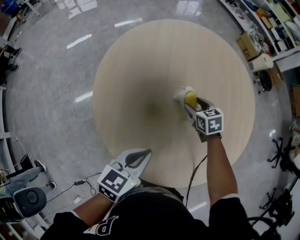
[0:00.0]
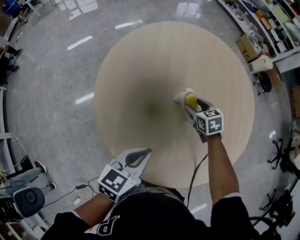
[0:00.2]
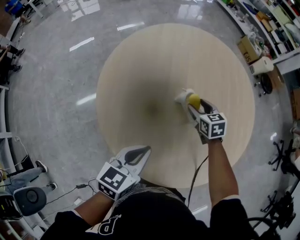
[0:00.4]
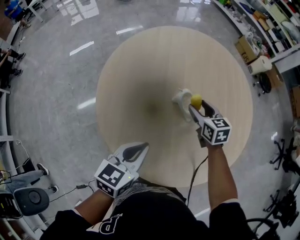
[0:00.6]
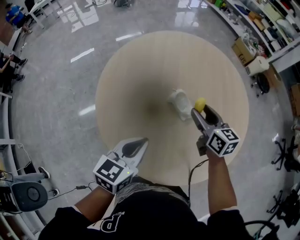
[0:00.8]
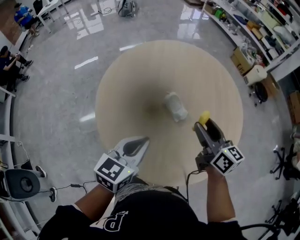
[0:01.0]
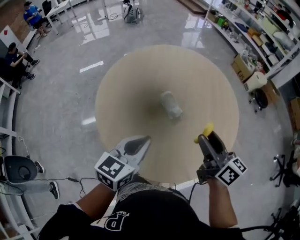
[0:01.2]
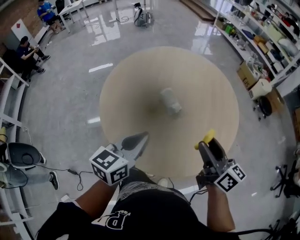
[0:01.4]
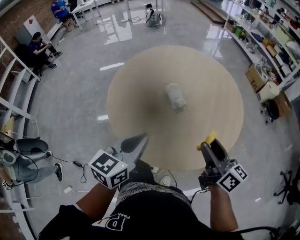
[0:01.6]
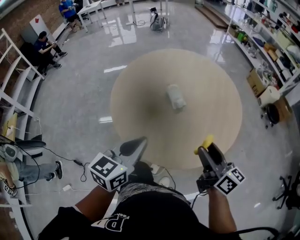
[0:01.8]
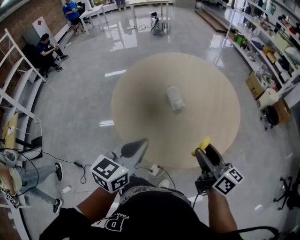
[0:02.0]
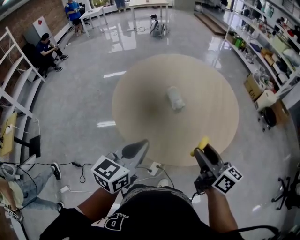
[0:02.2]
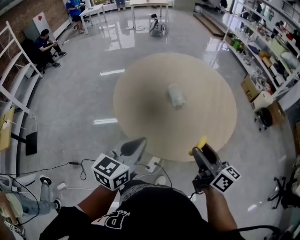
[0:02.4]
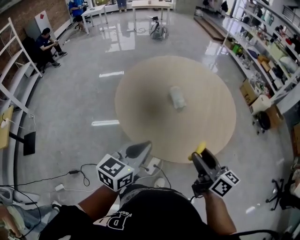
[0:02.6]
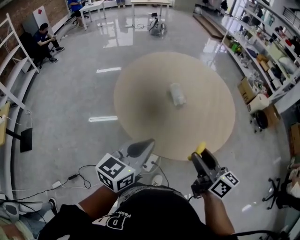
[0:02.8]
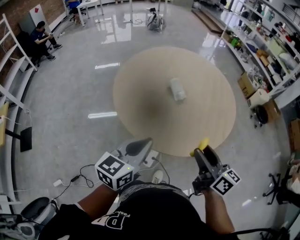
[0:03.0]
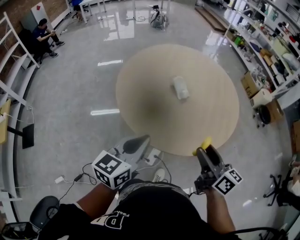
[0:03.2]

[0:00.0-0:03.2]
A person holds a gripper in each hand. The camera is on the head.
0:00.0 to 0:01.6: The left gripper goes roughly 25 cm to the right, upward and backward, and swivels some 30 degrees. The right gripper moves backward, upward and to the right, approximately 40 cm, and tips its fingers upward by roughly 50 degrees.
0:01.6 to 0:03.2: Both grippers move backward, approximately 15 cm.

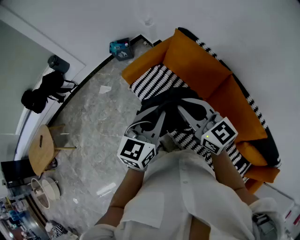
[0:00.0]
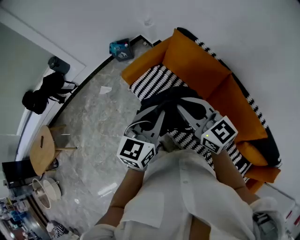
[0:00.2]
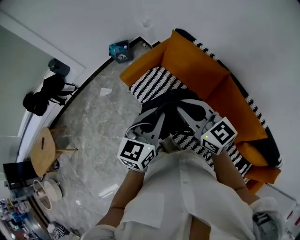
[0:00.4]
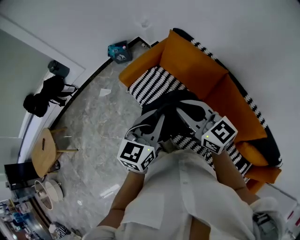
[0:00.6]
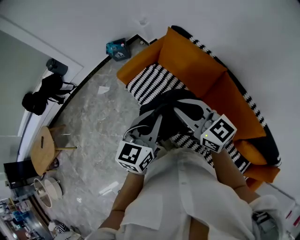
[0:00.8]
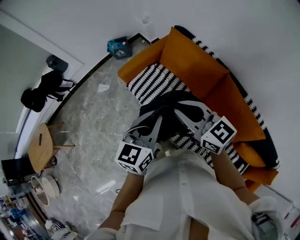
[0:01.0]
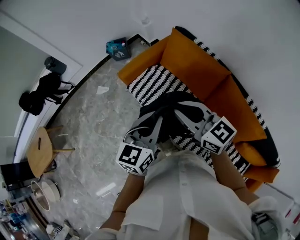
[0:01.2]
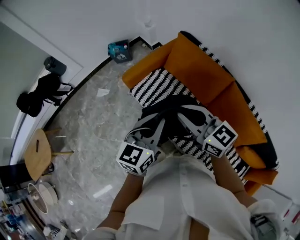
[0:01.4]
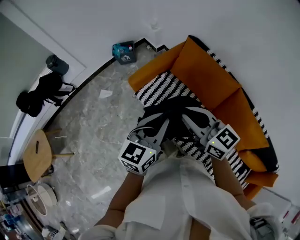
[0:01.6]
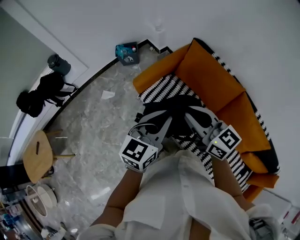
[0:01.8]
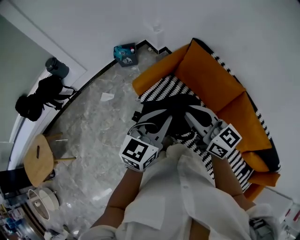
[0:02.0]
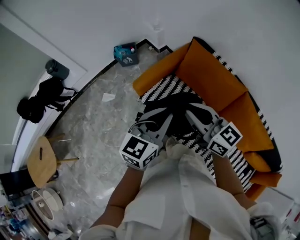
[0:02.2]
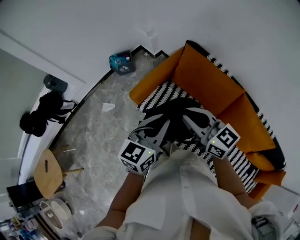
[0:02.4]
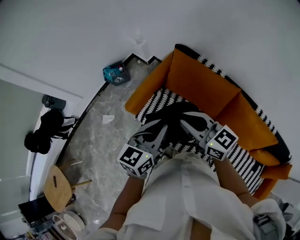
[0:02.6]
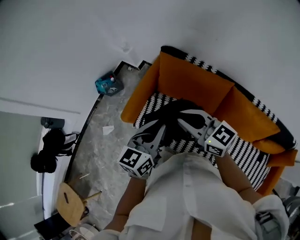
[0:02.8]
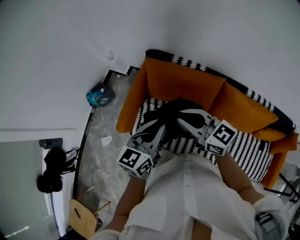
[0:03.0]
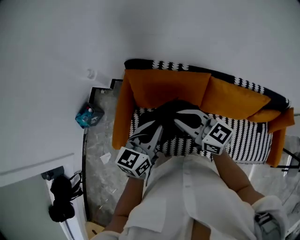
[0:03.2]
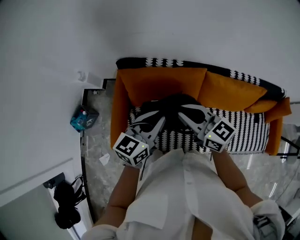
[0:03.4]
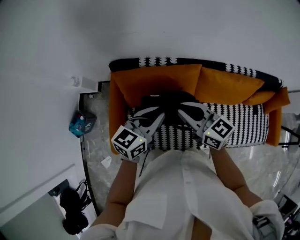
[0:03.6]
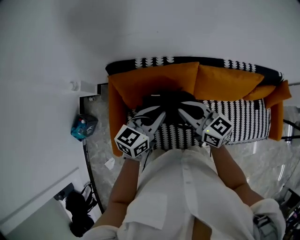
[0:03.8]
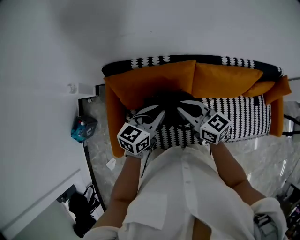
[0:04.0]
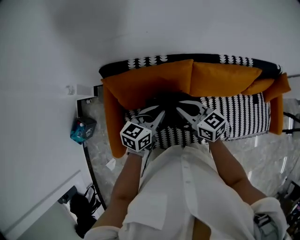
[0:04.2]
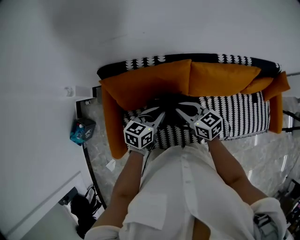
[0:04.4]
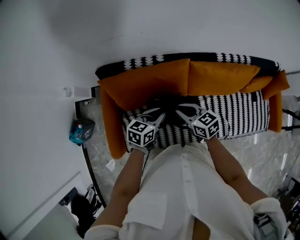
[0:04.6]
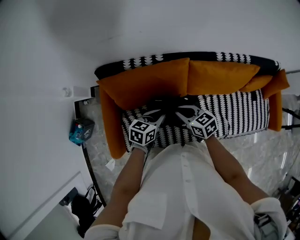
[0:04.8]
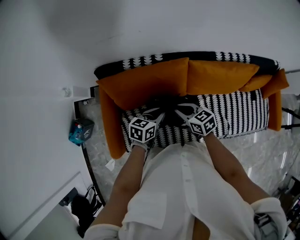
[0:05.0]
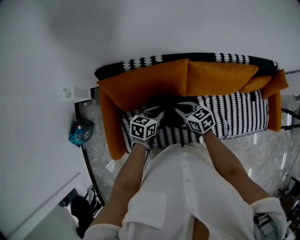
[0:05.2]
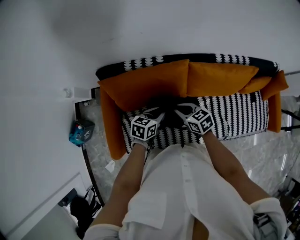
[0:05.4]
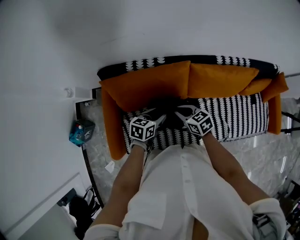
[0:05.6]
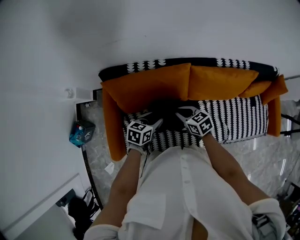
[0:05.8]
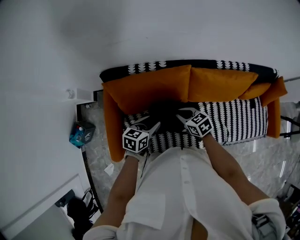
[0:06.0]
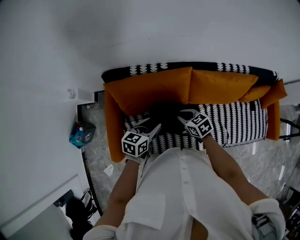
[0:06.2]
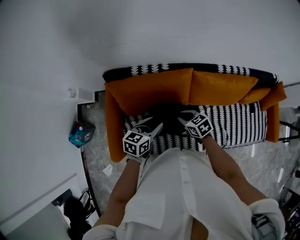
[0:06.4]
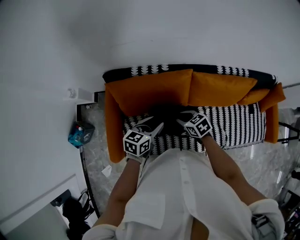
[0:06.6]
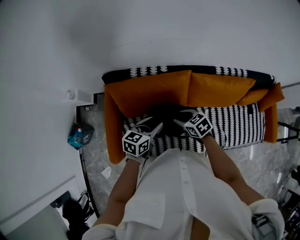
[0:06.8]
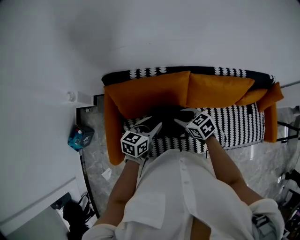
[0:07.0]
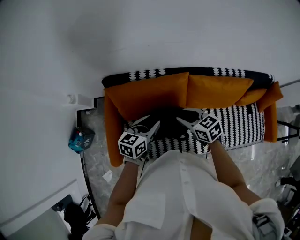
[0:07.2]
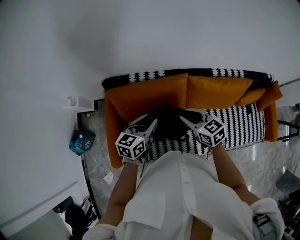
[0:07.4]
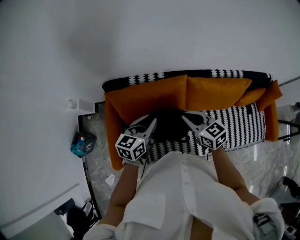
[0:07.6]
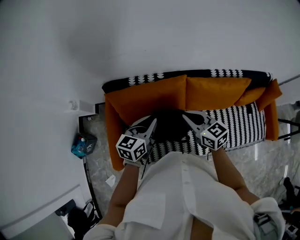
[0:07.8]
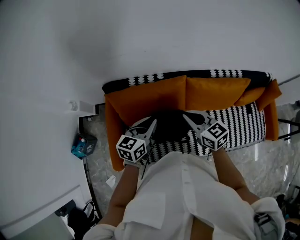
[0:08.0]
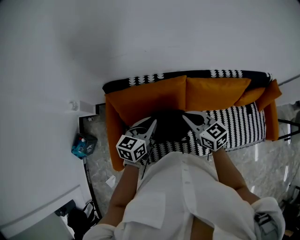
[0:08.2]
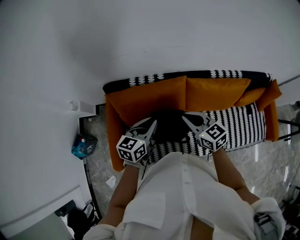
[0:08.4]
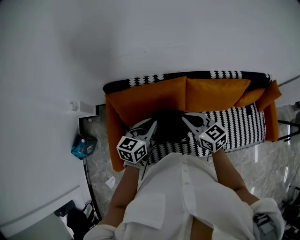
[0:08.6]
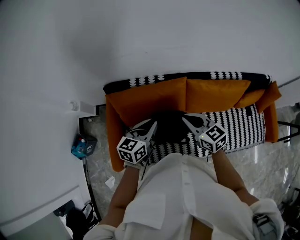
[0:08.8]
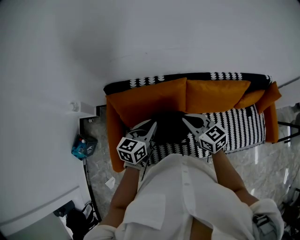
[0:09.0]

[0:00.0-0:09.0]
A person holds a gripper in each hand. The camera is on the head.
0:00.0 to 0:01.6: The grippers both shift to the left and forward by roughly 10 cm.
0:01.6 to 0:03.0: The grippers both shift forward and to the right by some 20 cm. The left gripper swivels roughly 30 degrees.
0:03.0 to 0:04.4: Both grippers travel together downward, approximately 15 cm. The right gripper swivels approximately 40 degrees; the left gripper changes its angle by roughly 40 degrees.
0:04.4 to 0:06.0: The right gripper travels downward by roughly 10 cm. The left gripper changes place by roughly 5 cm, and opens.
0:06.0 to 0:07.6: The grippers both shift upward by approximately 15 cm. The left gripper closes its fingers, while the right gripper opens, then closes once more.
0:07.6 to 0:09.0: There are only small adjustments of the grippers.

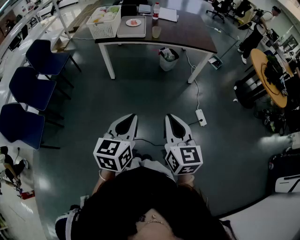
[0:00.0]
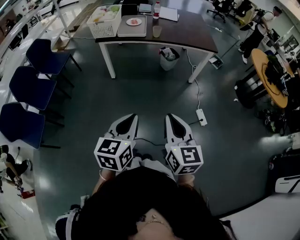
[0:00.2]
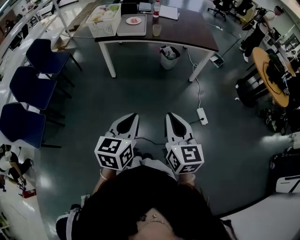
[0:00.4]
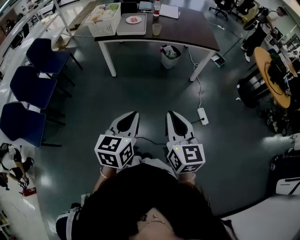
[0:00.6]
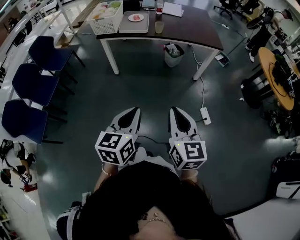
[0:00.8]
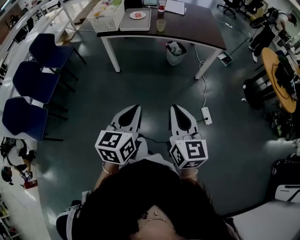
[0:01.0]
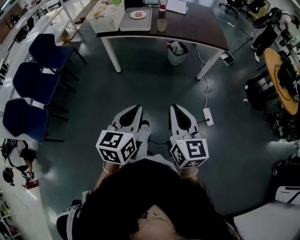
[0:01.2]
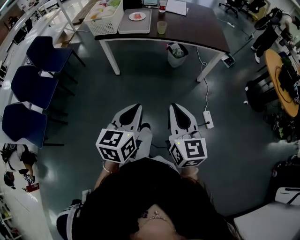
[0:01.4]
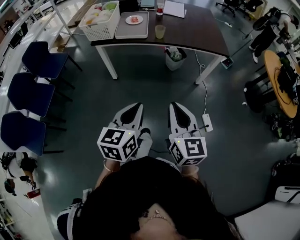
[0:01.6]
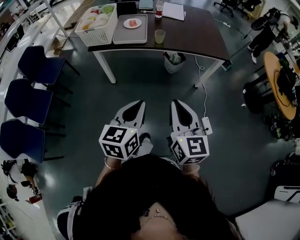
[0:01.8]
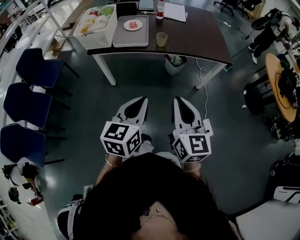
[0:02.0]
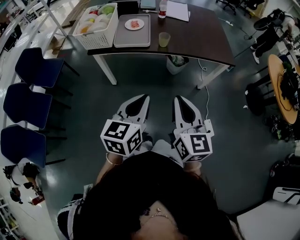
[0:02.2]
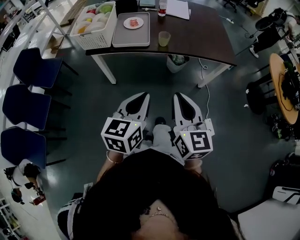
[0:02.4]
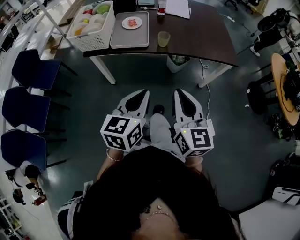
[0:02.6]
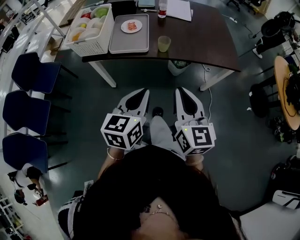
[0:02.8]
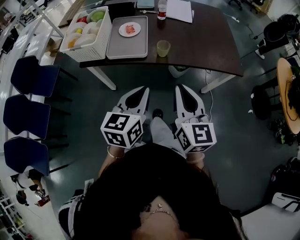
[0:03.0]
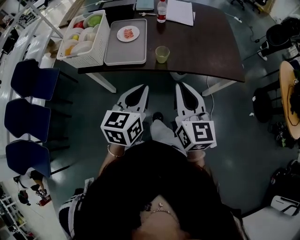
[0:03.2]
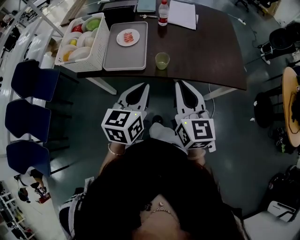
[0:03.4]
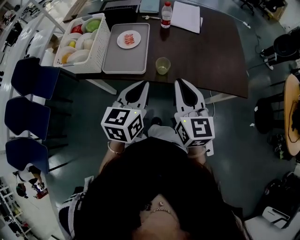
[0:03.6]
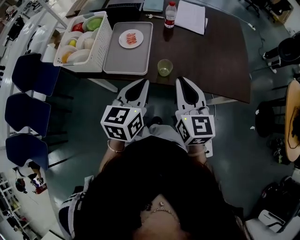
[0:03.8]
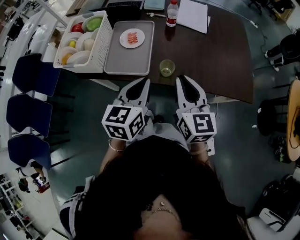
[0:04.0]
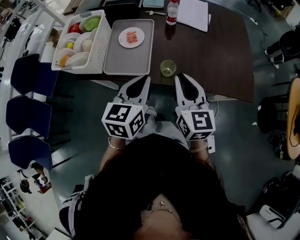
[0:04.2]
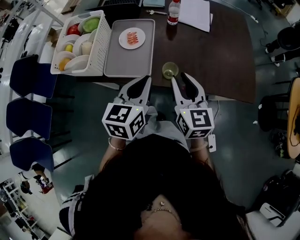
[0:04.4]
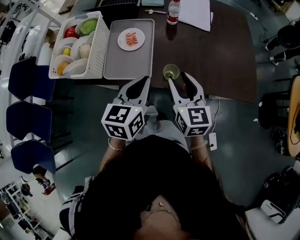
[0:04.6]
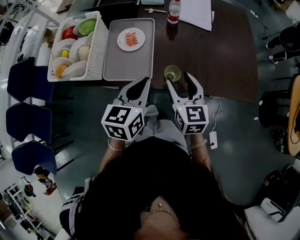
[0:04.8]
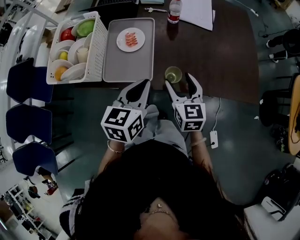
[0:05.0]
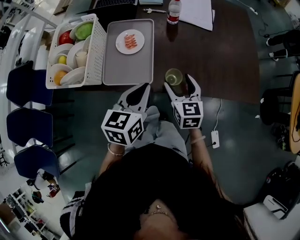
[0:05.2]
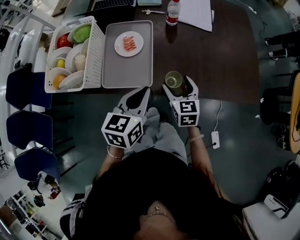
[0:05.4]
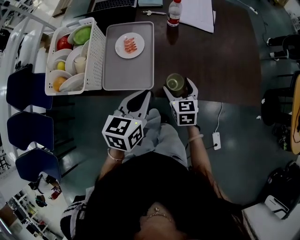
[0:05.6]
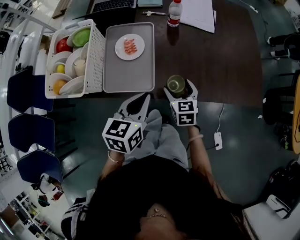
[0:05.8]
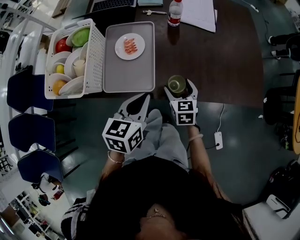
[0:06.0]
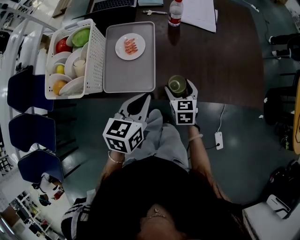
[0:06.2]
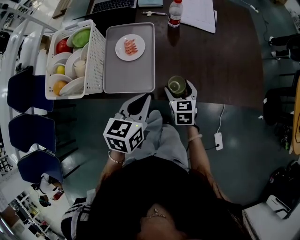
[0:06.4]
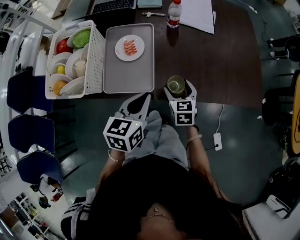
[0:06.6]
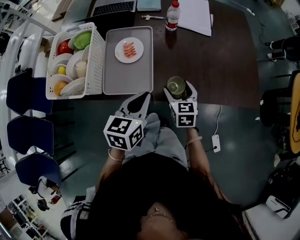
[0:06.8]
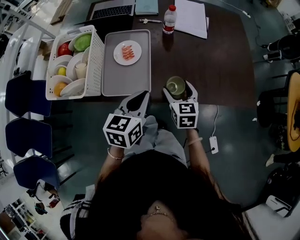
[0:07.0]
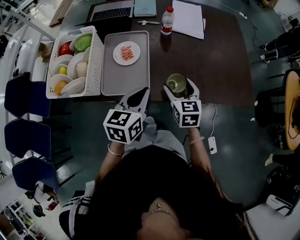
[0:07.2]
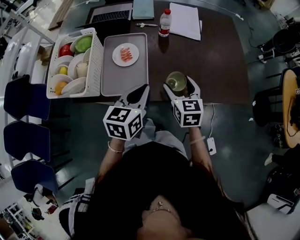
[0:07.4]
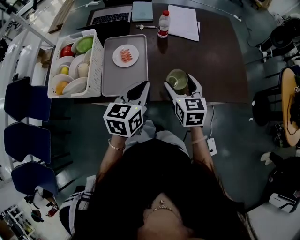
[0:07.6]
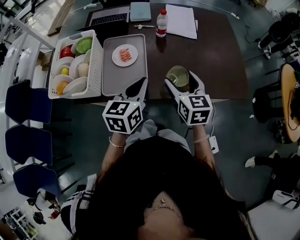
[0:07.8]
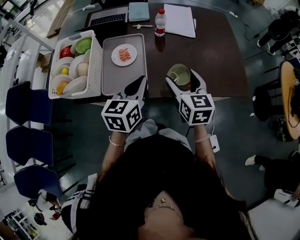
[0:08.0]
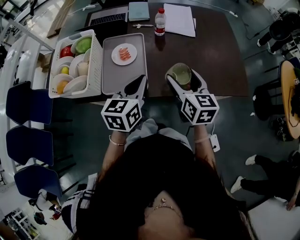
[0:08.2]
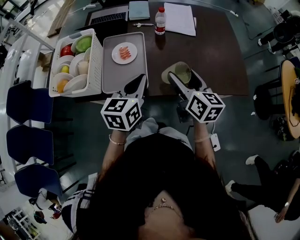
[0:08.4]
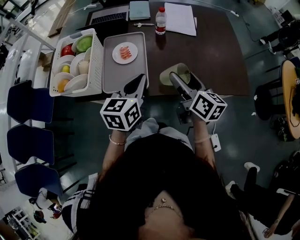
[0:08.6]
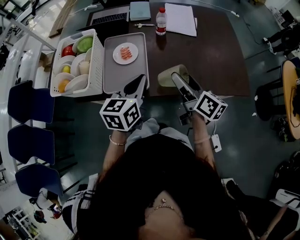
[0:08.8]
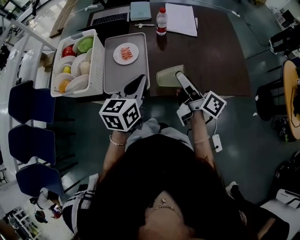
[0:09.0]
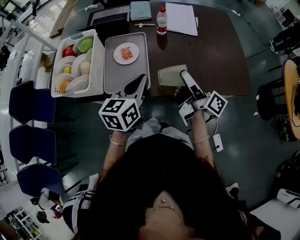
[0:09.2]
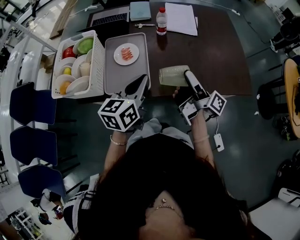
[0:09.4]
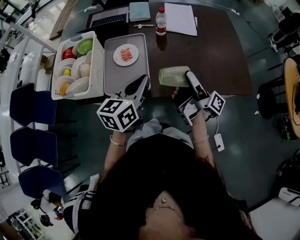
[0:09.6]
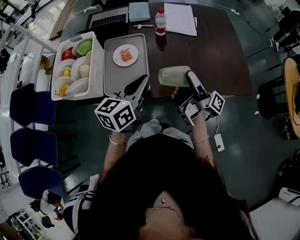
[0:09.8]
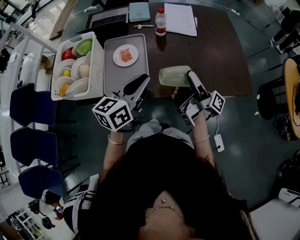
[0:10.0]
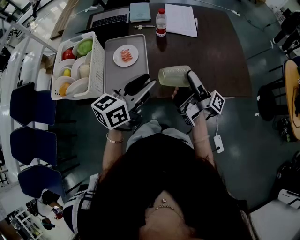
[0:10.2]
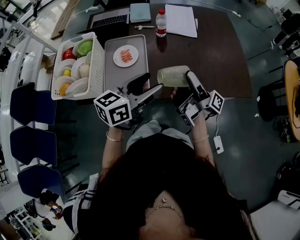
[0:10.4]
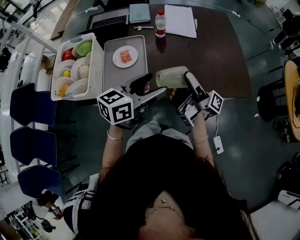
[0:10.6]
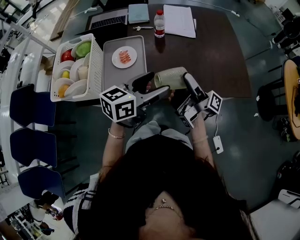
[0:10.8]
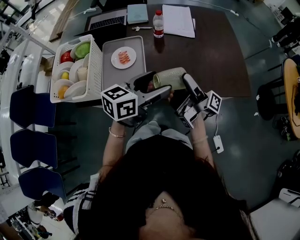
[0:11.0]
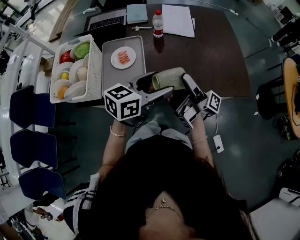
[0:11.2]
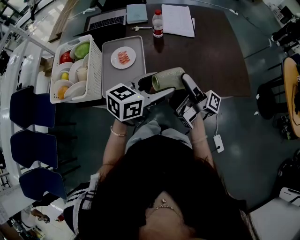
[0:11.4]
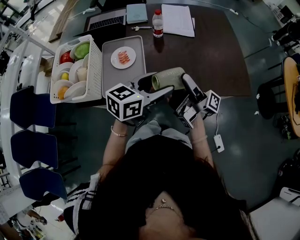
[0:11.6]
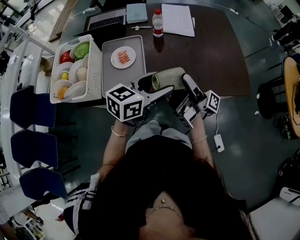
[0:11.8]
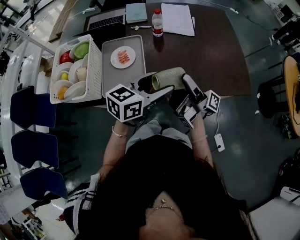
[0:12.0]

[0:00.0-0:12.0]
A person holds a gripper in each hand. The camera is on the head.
0:00.0 to 0:01.6: Both grippers move forward, roughly 20 cm.
0:01.6 to 0:03.0: The two grippers go some 35 cm forward.
0:03.0 to 0:04.4: The grippers both shift forward by roughly 25 cm.
0:04.4 to 0:06.0: The left gripper goes roughly 5 cm downward. The right gripper heads downward, covering about 20 cm, swivels roughly 20 degrees, and opens.
0:06.0 to 0:07.6: The left gripper is displaced upward by roughly 5 cm. The right gripper is displaced upward by about 15 cm.
0:07.6 to 0:09.0: The right gripper changes place by approximately 5 cm, and twists about 60 degrees clockwise, seen from behind.
0:09.0 to 0:10.4: The left gripper moves approximately 5 cm, changes its angle by some 30 degrees, and opens. The right gripper changes its angle by some 40 degrees.
0:10.4 to 0:12.0: The left gripper moves about 5 cm.
